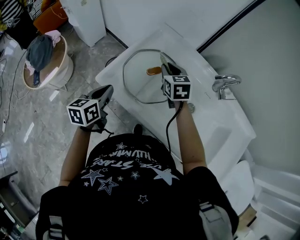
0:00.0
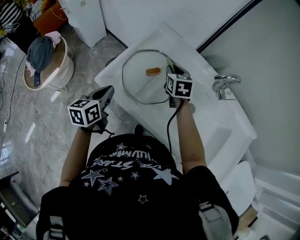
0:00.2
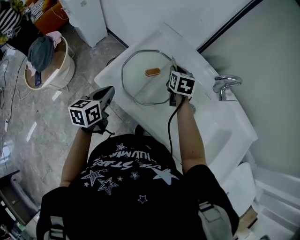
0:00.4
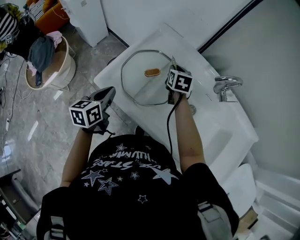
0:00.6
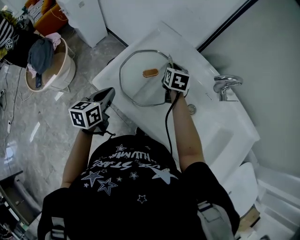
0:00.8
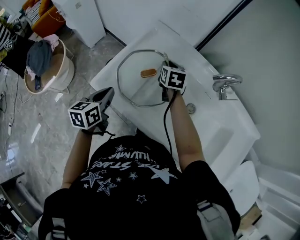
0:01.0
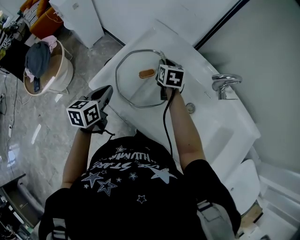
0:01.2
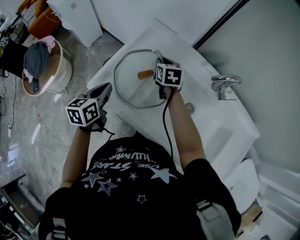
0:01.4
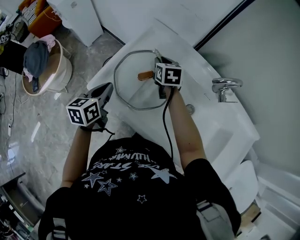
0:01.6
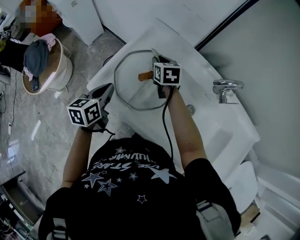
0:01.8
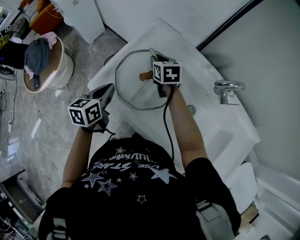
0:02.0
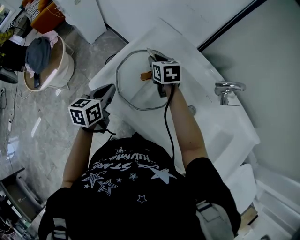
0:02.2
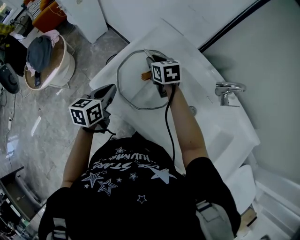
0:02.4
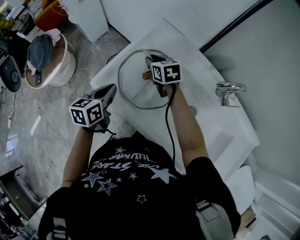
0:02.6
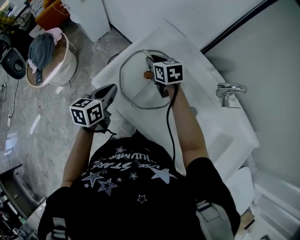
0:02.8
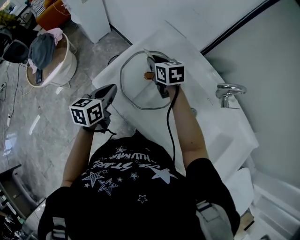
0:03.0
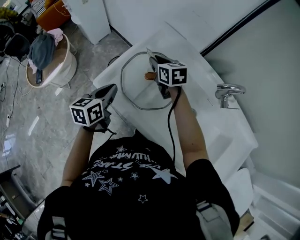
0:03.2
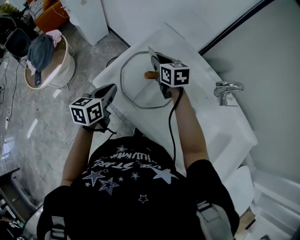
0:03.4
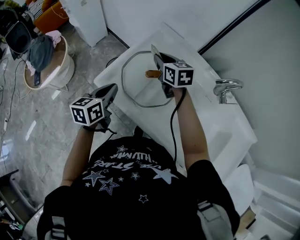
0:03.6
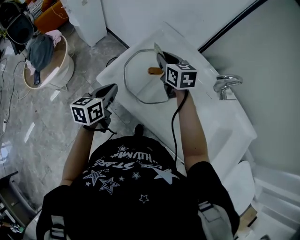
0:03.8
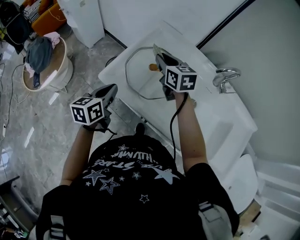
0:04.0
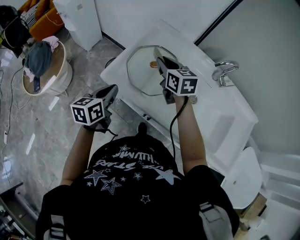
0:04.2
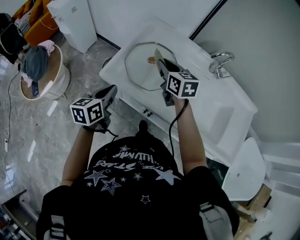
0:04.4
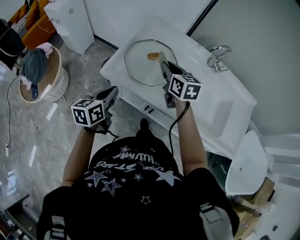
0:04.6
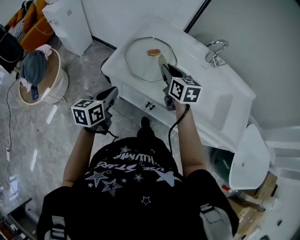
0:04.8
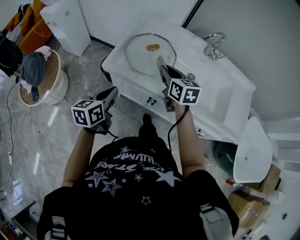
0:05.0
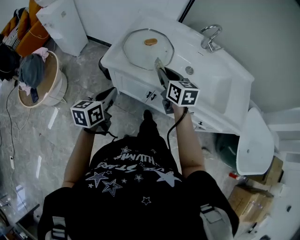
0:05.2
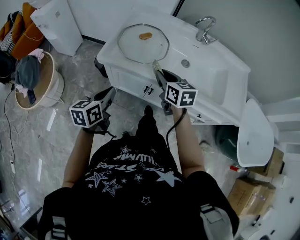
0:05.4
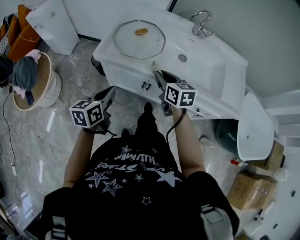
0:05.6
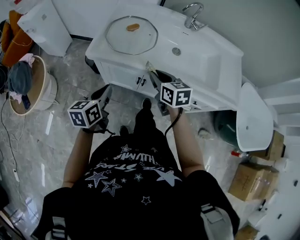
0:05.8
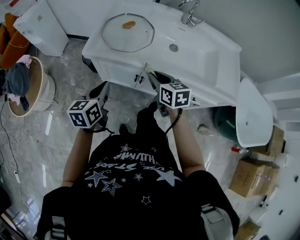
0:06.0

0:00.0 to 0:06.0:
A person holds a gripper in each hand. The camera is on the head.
0:00.0 to 0:01.6: The right gripper is displaced forward and downward by roughly 10 cm. The left gripper is displaced forward by about 5 cm.
0:01.6 to 0:03.0: The right gripper moves to the left, about 10 cm, and swivels roughly 20 degrees.
0:03.0 to 0:04.4: The right gripper moves backward and upward, about 15 cm, and changes its angle by about 20 degrees. The left gripper goes about 10 cm backward and to the left.
0:04.4 to 0:06.0: The left gripper shifts about 15 cm backward. The right gripper moves backward, roughly 25 cm.

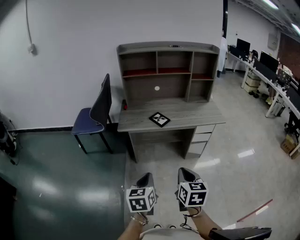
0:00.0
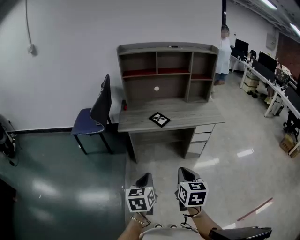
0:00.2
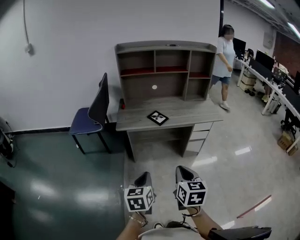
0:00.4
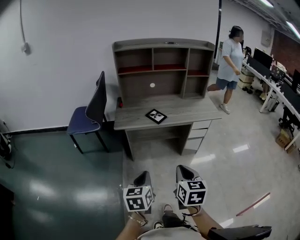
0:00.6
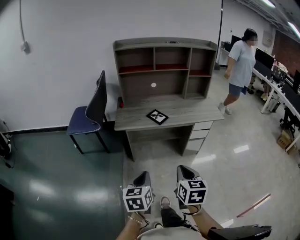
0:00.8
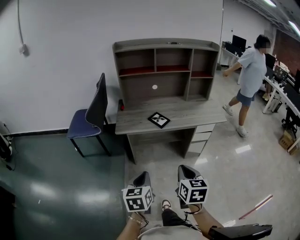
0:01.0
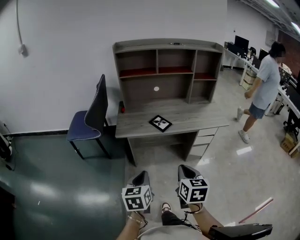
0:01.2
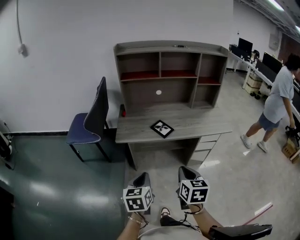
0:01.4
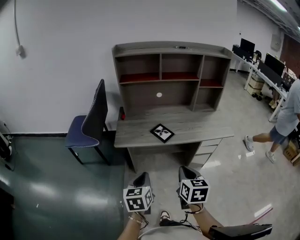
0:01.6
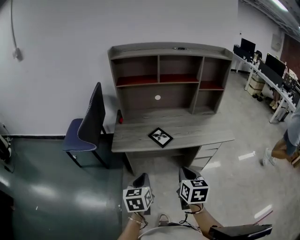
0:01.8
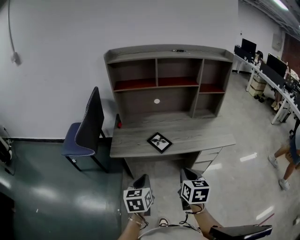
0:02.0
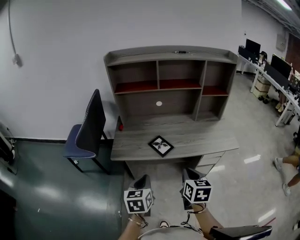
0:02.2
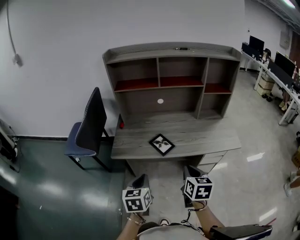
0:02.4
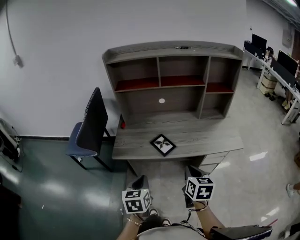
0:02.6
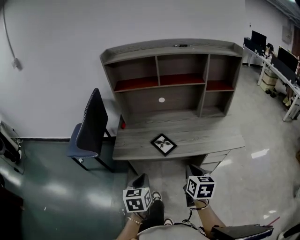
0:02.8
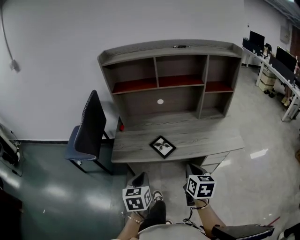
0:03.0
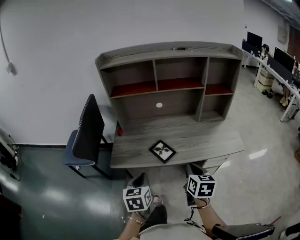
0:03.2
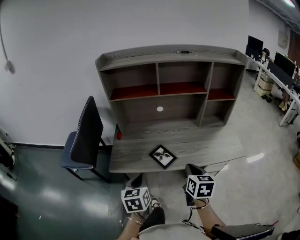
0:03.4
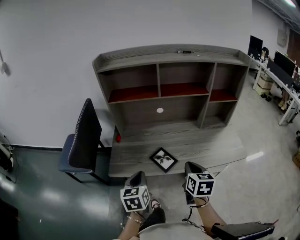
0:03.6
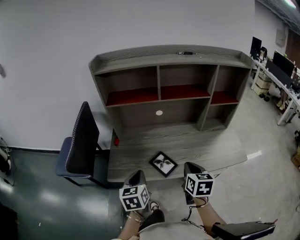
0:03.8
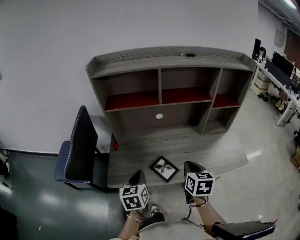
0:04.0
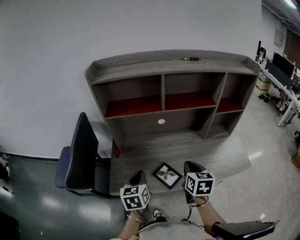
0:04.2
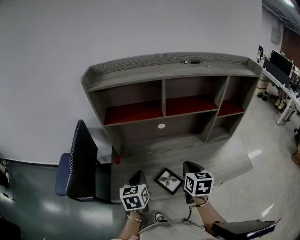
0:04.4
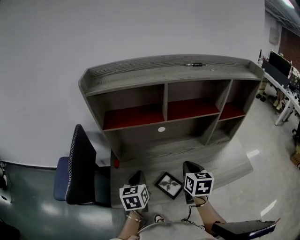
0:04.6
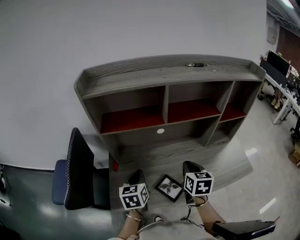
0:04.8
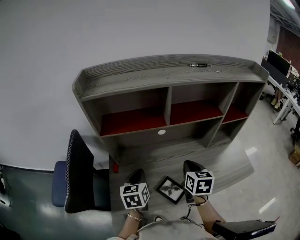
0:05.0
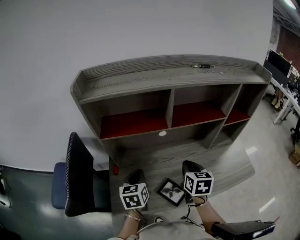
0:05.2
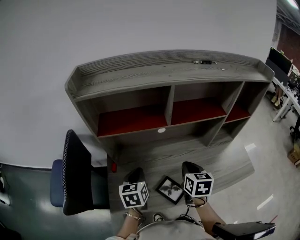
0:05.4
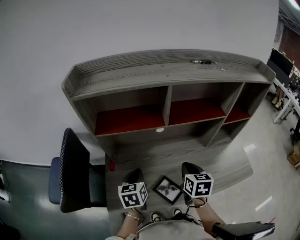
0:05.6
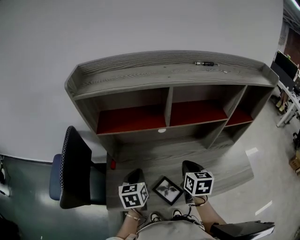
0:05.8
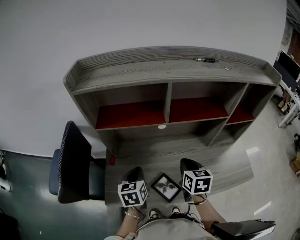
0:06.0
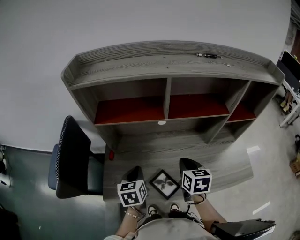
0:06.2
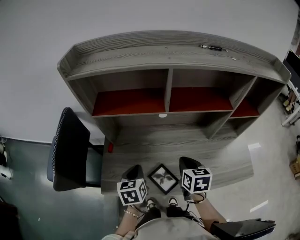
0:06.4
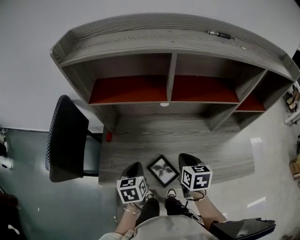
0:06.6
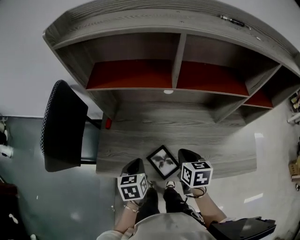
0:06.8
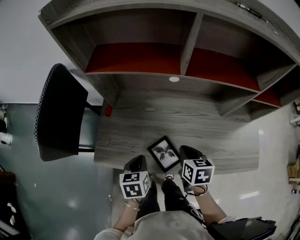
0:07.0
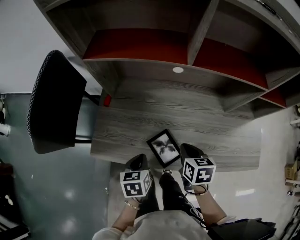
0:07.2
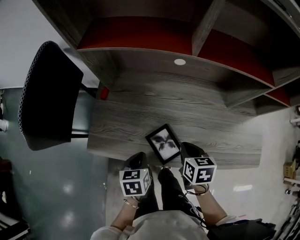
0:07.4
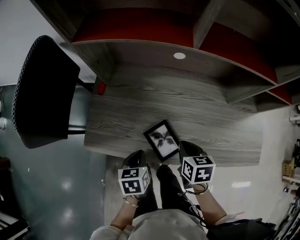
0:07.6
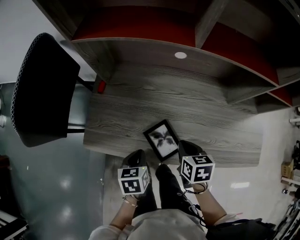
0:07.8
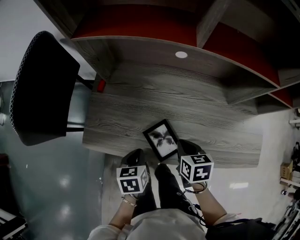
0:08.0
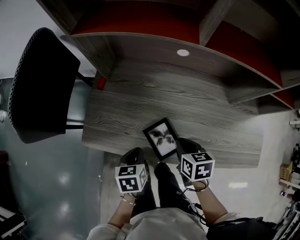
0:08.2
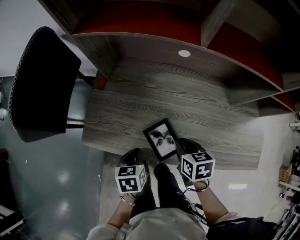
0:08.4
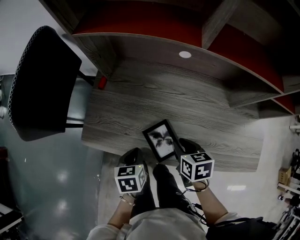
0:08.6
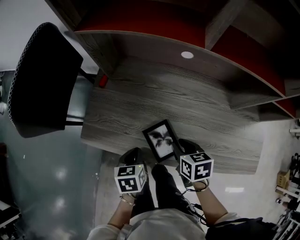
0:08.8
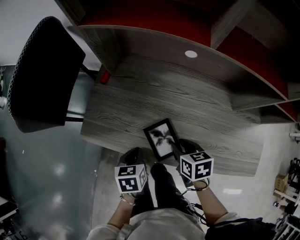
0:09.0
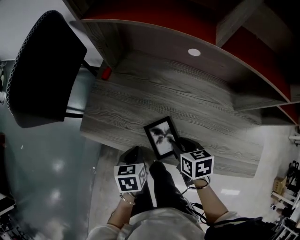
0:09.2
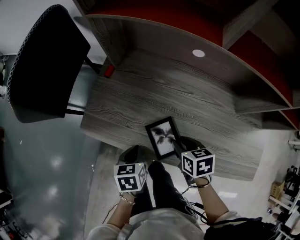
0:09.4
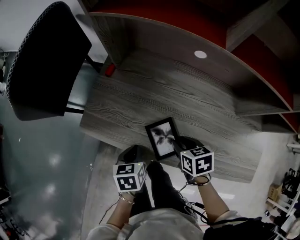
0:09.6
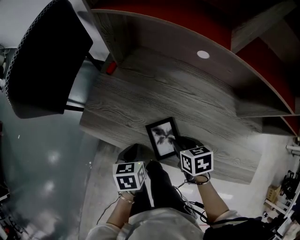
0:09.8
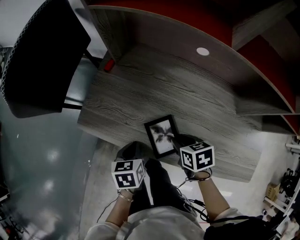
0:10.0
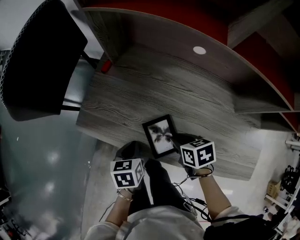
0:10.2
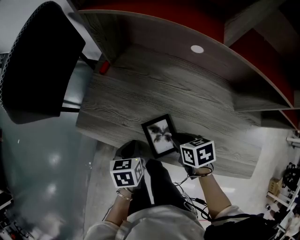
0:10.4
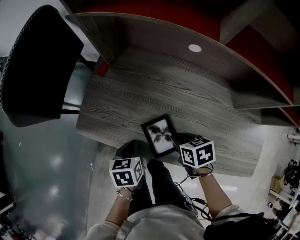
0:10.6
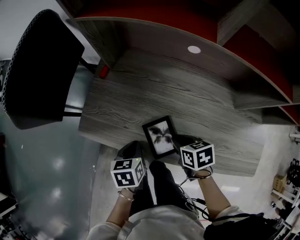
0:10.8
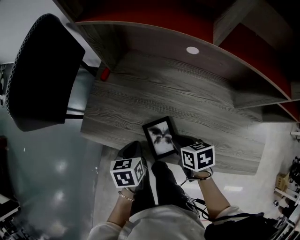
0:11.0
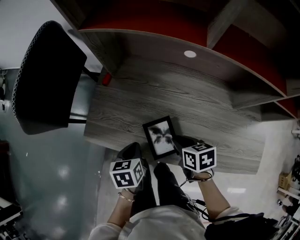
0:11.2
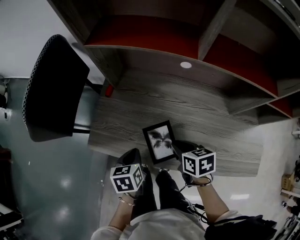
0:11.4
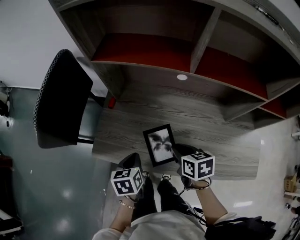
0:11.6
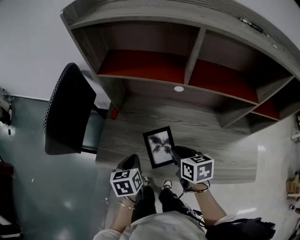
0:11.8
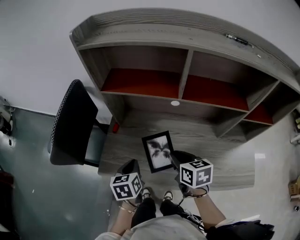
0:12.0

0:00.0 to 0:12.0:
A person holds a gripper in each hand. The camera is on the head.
0:00.0 to 0:01.6: The two grippers go about 20 cm forward.
0:01.6 to 0:03.0: The left gripper travels forward by approximately 15 cm; the right gripper is displaced forward and to the right by roughly 20 cm.
0:03.0 to 0:04.4: Both grippers travel together forward, approximately 25 cm.
0:04.4 to 0:06.0: The grippers both shift forward by some 10 cm.
0:06.0 to 0:07.6: Both grippers travel together downward and backward, about 20 cm. The left gripper turns by approximately 20 degrees, while the right gripper rotates about 30 degrees.
0:07.6 to 0:09.0: The right gripper opens up.
0:09.0 to 0:10.4: The grippers stay close to where they were, moving slightly.
0:10.4 to 0:12.0: The right gripper is displaced upward by roughly 20 cm, and changes its angle by approximately 30 degrees. Meanwhile the left gripper is displaced upward and forward by about 15 cm.

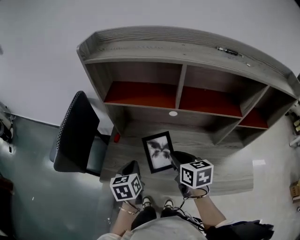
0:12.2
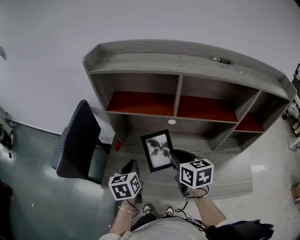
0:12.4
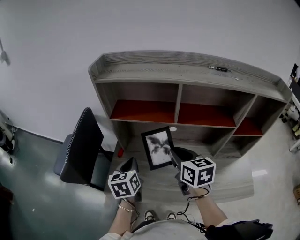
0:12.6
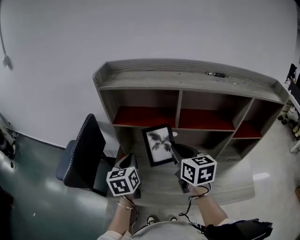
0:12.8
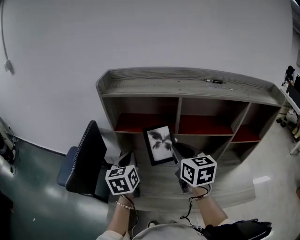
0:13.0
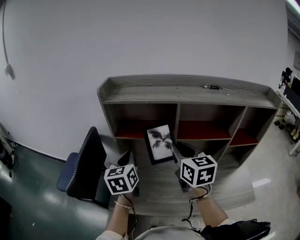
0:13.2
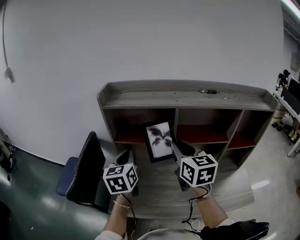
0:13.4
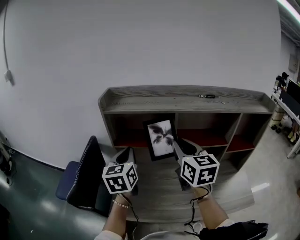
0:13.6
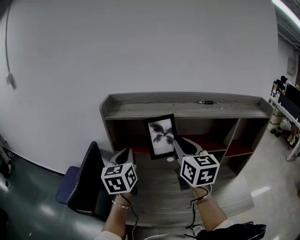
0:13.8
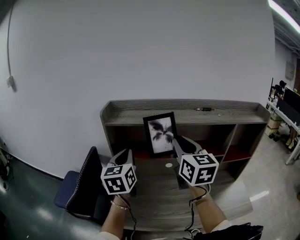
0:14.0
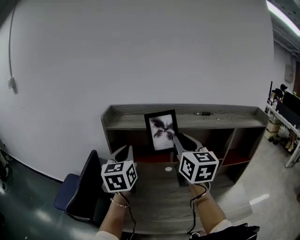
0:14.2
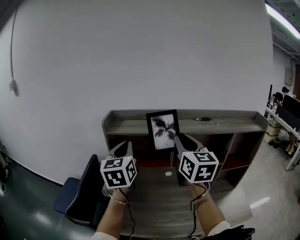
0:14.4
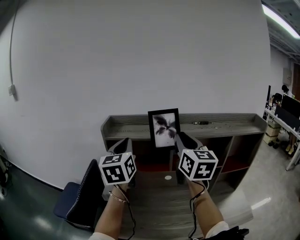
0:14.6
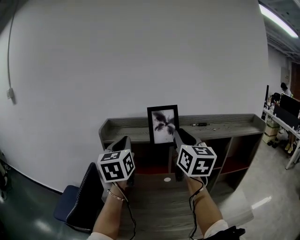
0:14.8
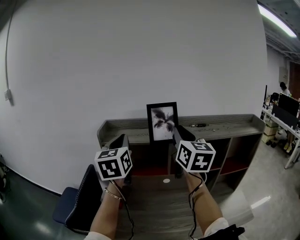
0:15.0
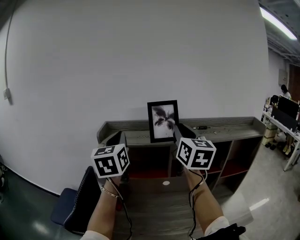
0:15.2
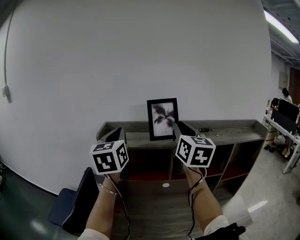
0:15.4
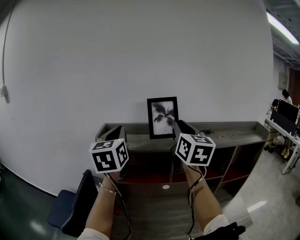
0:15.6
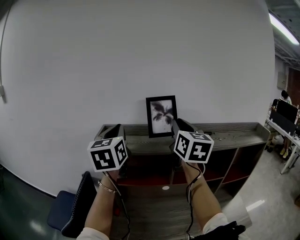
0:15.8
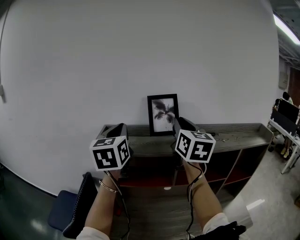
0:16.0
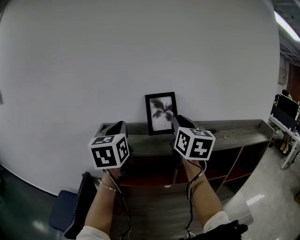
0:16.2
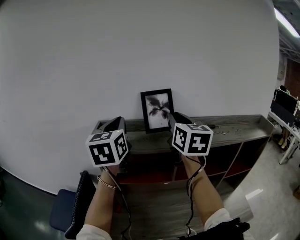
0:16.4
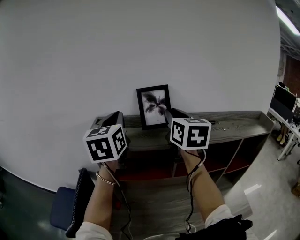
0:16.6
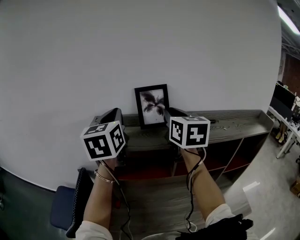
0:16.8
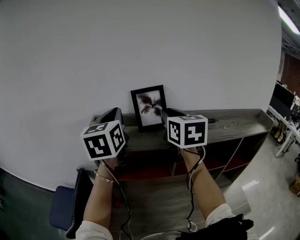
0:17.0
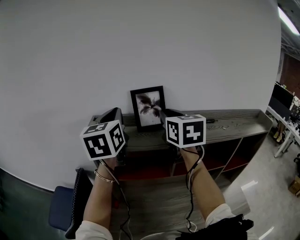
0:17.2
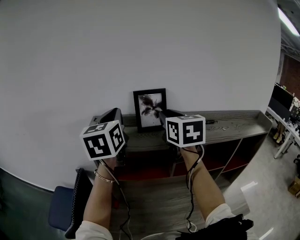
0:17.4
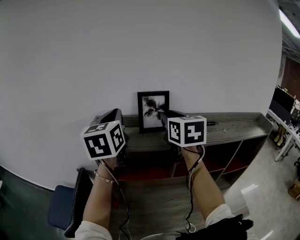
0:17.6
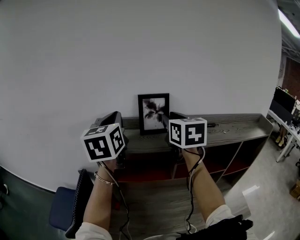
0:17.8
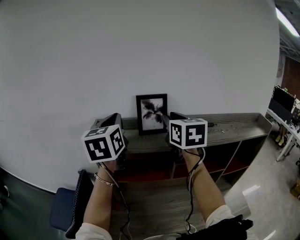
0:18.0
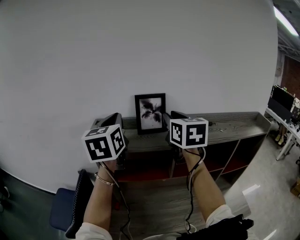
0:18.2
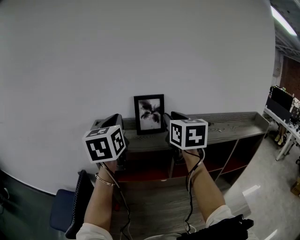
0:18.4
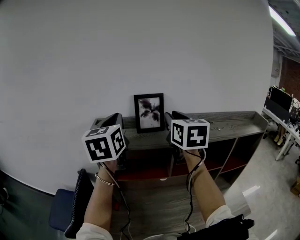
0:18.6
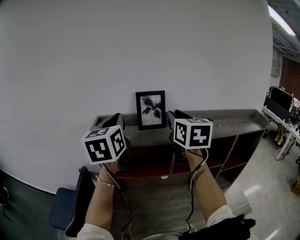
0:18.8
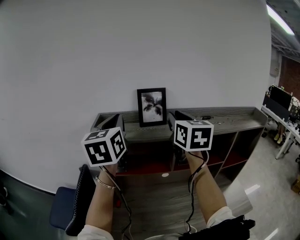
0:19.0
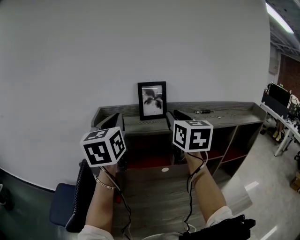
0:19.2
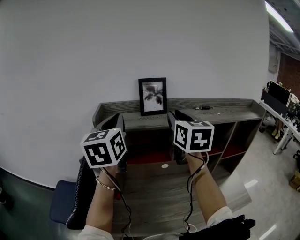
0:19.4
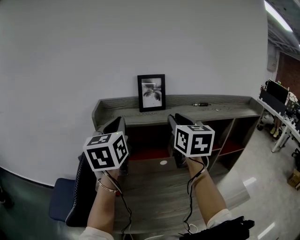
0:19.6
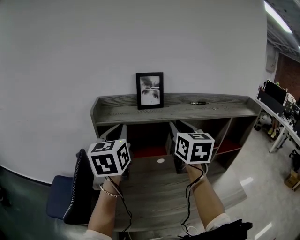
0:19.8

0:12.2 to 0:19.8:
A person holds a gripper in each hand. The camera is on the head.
0:12.2 to 0:13.8: Both grippers move upward, about 30 cm. The left gripper rotates approximately 30 degrees; the right gripper tips its fingers upward by some 30 degrees.
0:13.8 to 0:15.2: Both grippers travel together upward and forward, approximately 15 cm.
0:15.2 to 0:16.8: Both grippers move forward, approximately 10 cm.
0:16.8 to 0:18.2: The grippers make only small movements.
0:18.2 to 0:19.8: The grippers both shift backward and downward by some 15 cm.
